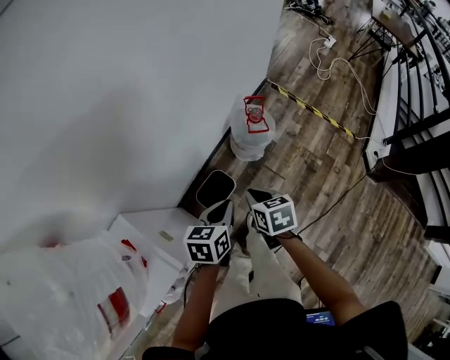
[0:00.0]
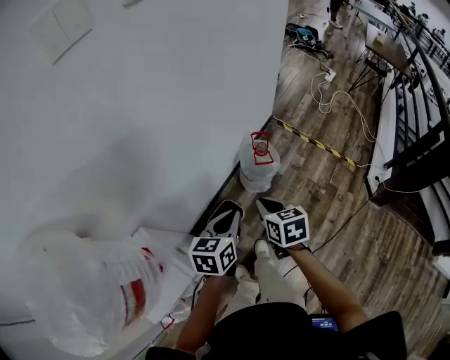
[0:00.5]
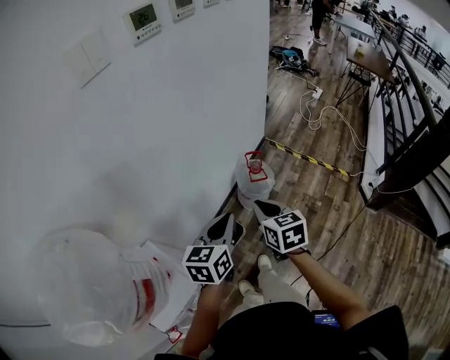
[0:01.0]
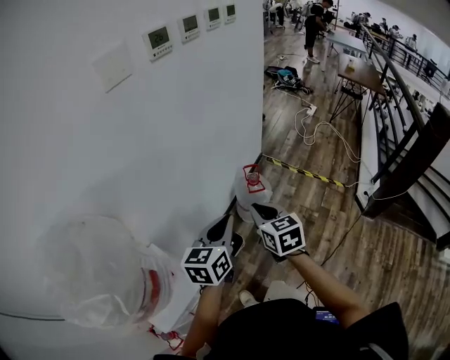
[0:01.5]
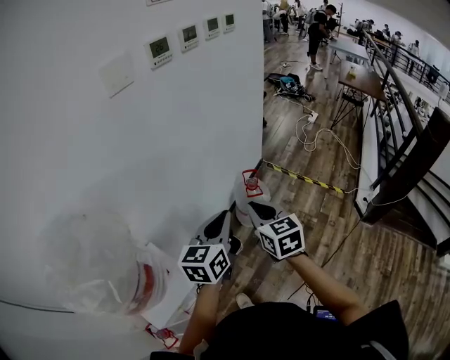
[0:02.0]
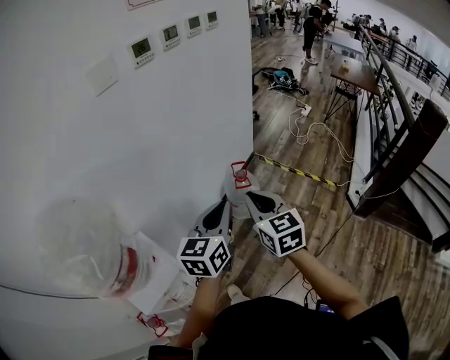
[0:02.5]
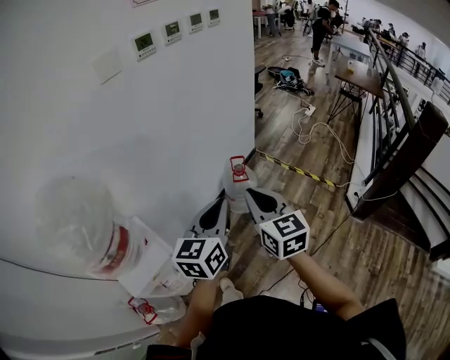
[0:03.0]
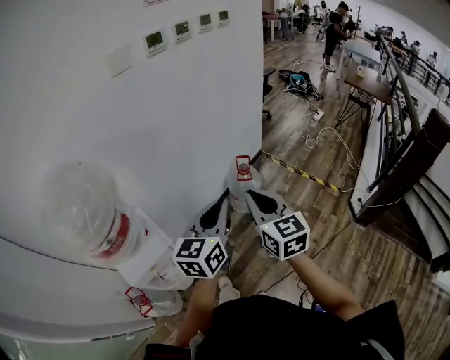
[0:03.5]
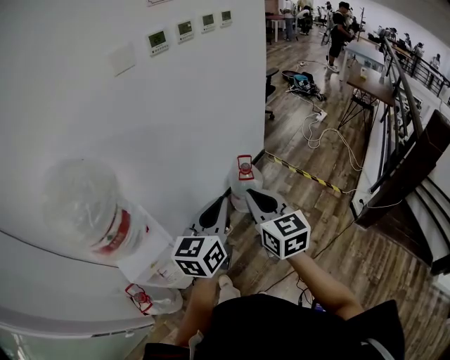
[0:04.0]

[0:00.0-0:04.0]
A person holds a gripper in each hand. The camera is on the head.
0:00.0 to 0:02.0: The two grippers go about 30 cm upward. The right gripper rotates about 40 degrees. Meanwhile the left gripper turns by about 30 degrees.
0:02.0 to 0:04.0: Both grippers travel together backward, to the right and upward, roughly 15 cm.

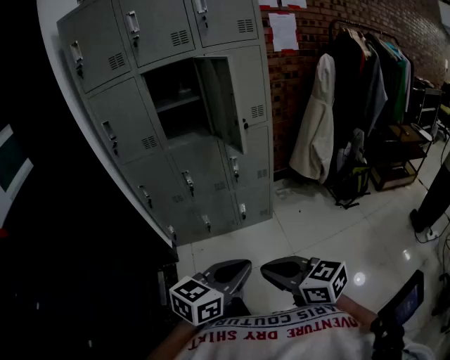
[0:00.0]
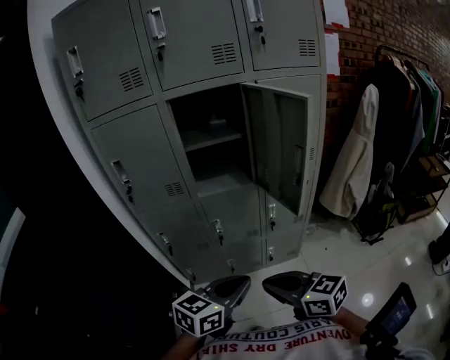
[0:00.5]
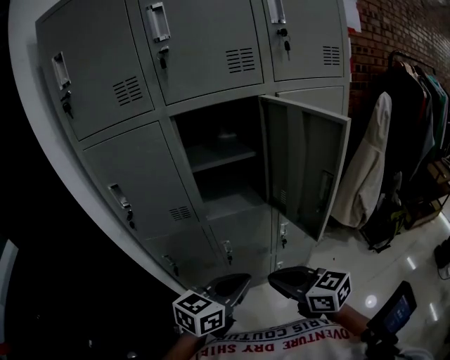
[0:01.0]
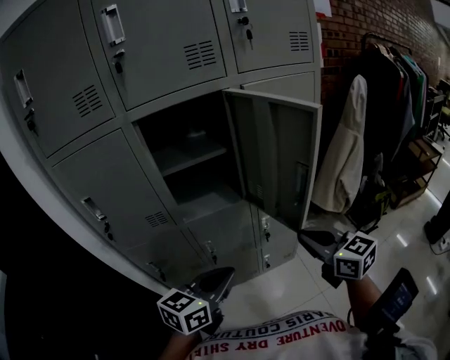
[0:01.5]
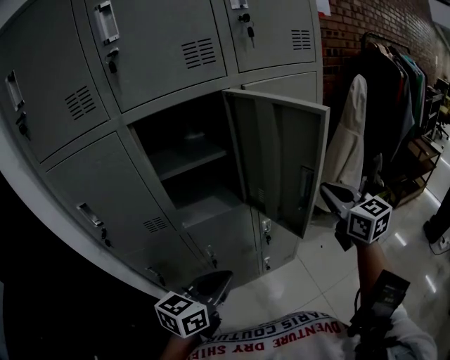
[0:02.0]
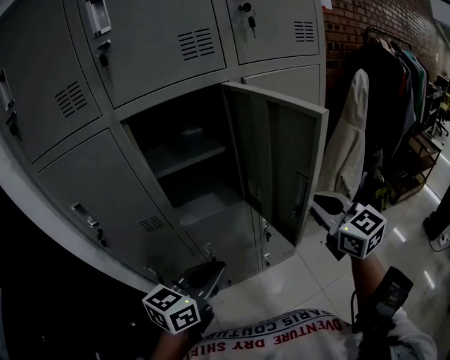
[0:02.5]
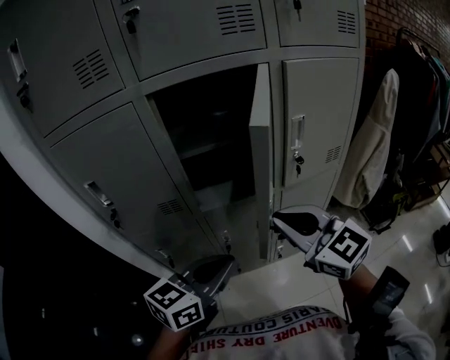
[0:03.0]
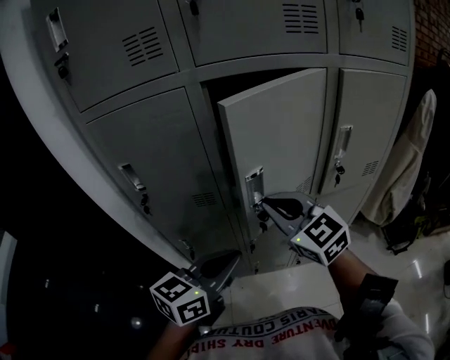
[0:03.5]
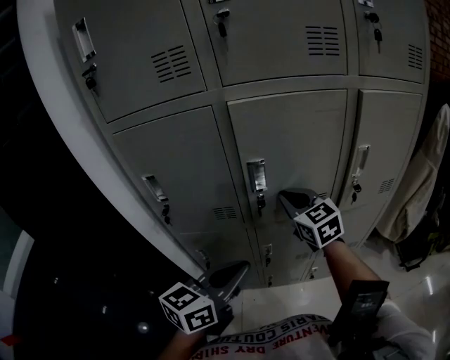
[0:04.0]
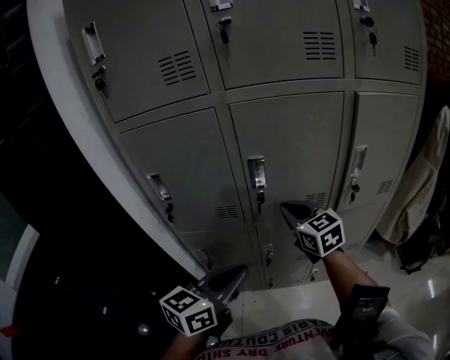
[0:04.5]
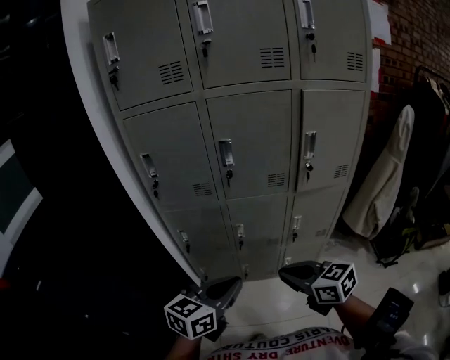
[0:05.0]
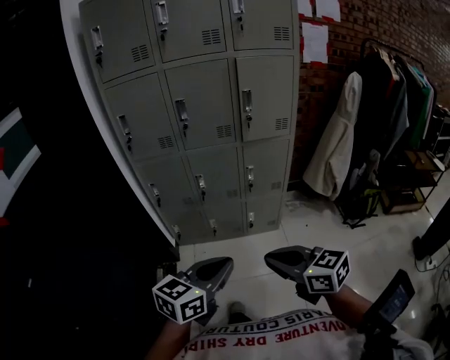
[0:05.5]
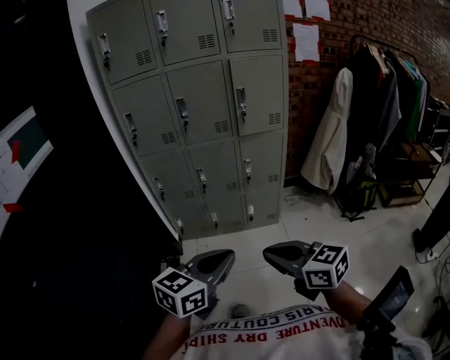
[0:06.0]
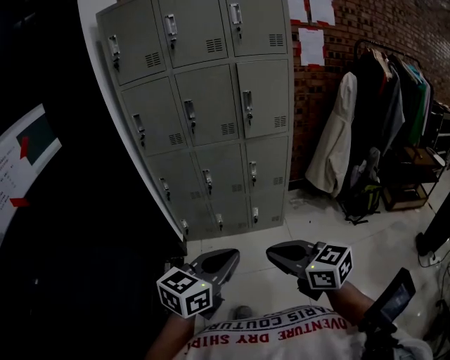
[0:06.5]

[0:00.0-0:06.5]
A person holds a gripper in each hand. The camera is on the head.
0:00.0 to 0:02.0: The two grippers travel together, forward, approximately 50 cm. The right gripper changes its angle by approximately 40 degrees.
0:02.0 to 0:04.5: The left gripper is displaced to the left by roughly 10 cm. Meanwhile the right gripper moves to the left, about 35 cm, and changes its angle by roughly 30 degrees.
0:04.5 to 0:06.5: The pair of grippers is taken backward, approximately 60 cm.

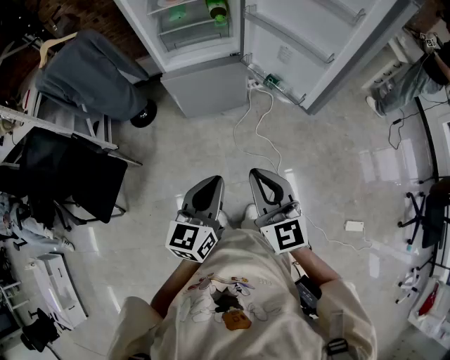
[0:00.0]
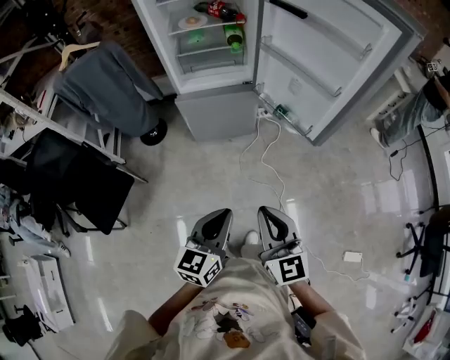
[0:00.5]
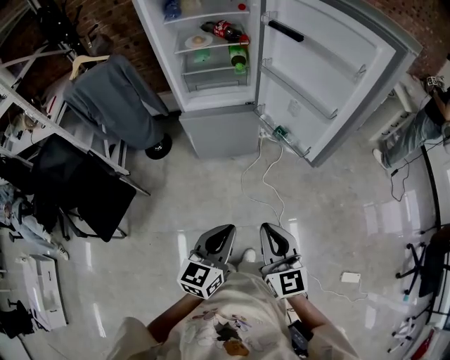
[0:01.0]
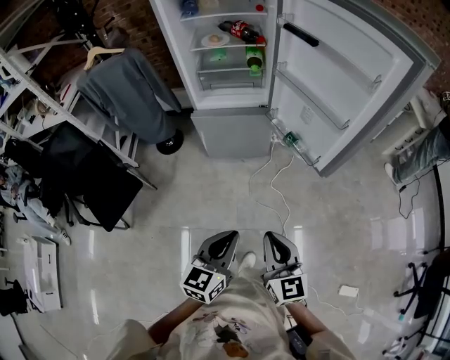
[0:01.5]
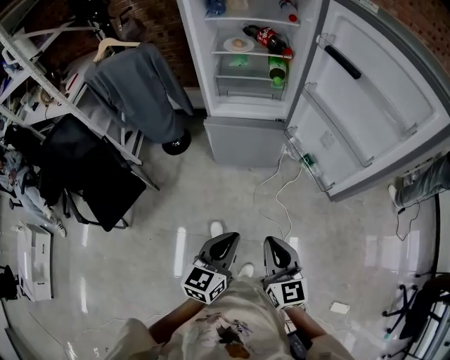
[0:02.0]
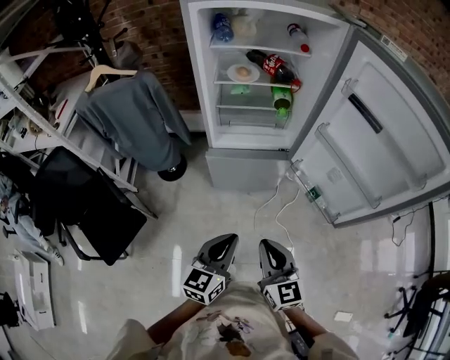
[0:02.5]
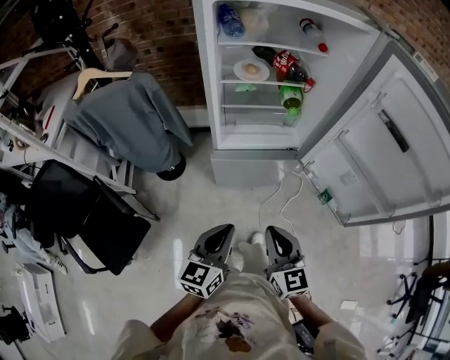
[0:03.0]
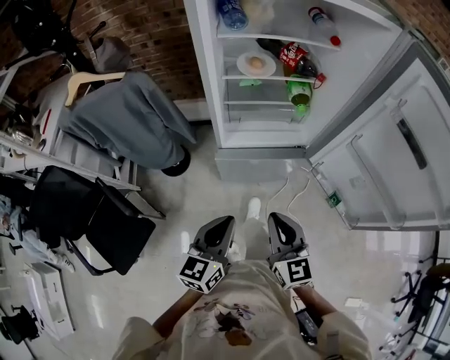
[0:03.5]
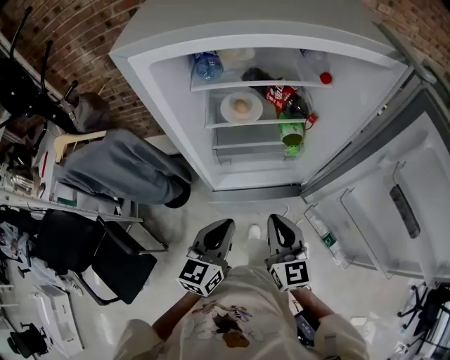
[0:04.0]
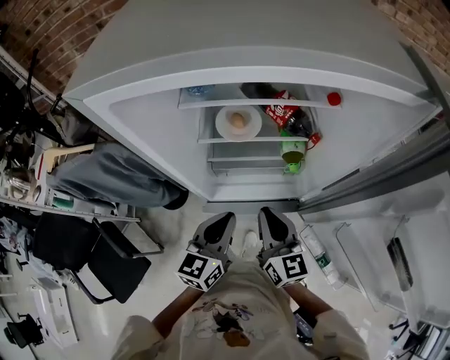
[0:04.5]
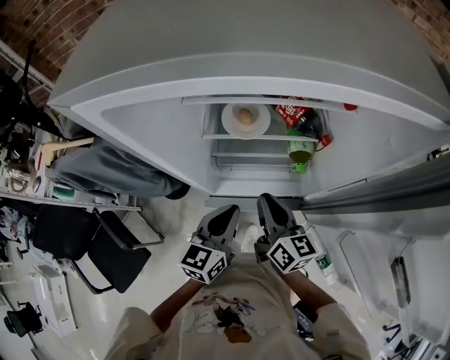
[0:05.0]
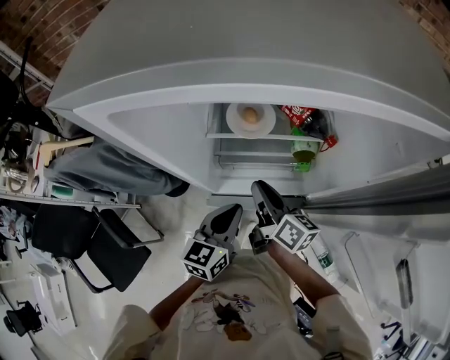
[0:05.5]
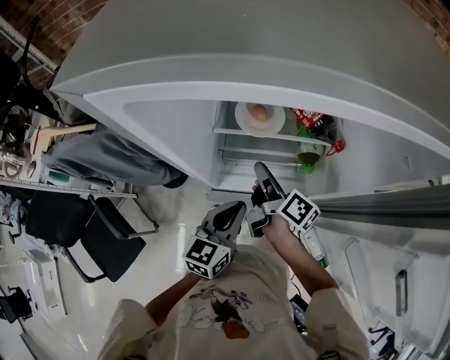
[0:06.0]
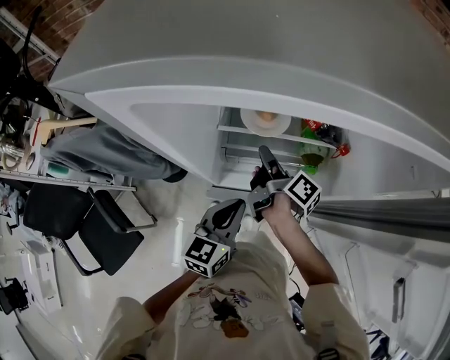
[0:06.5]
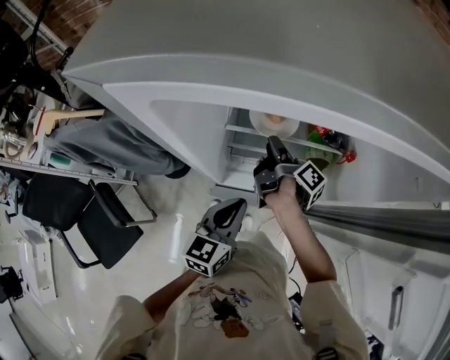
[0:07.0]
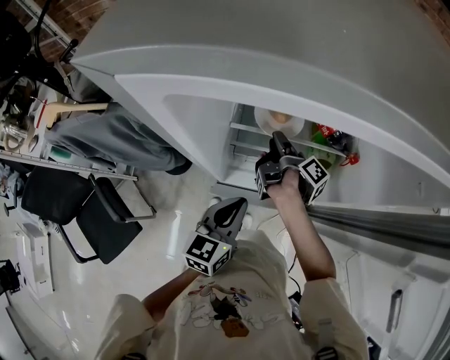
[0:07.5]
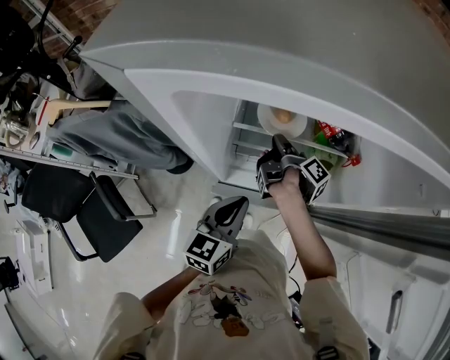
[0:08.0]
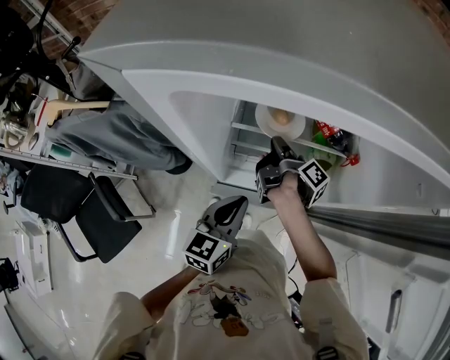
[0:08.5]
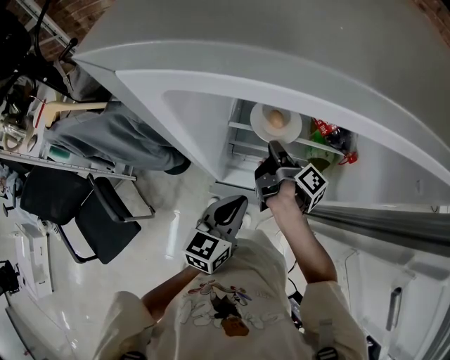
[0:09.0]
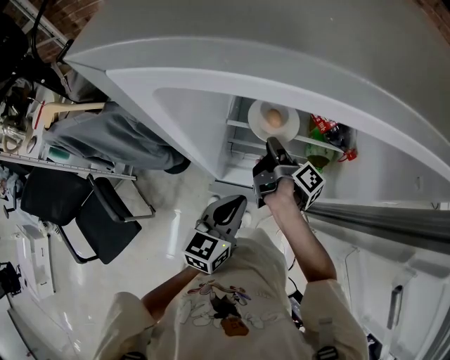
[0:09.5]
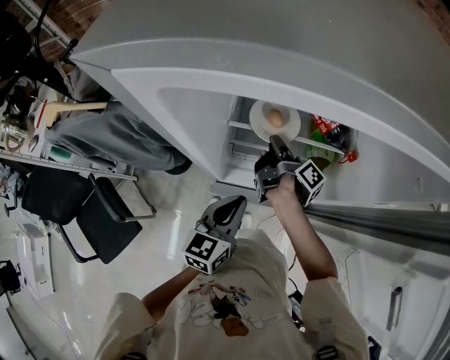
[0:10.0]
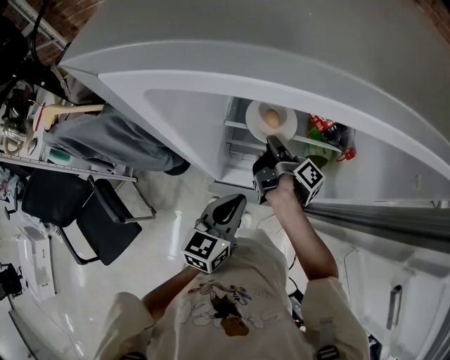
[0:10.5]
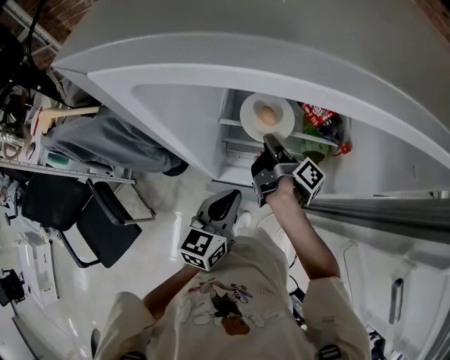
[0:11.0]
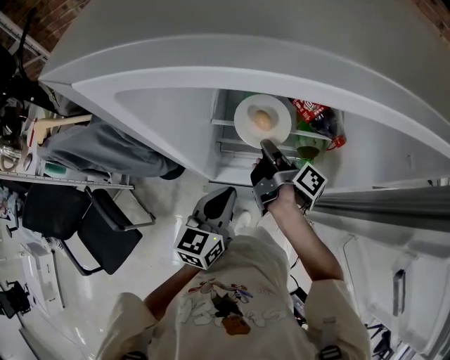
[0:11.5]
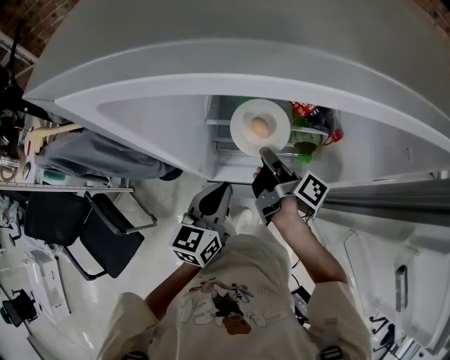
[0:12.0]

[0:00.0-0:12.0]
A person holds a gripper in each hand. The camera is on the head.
0:00.0 to 0:02.0: The left gripper ends up roughly 5 cm from where it was; the right gripper shifts about 5 cm downward.
0:02.0 to 0:04.0: The two grippers travel together, forward, roughly 50 cm.
0:04.0 to 0:06.0: The right gripper goes some 25 cm forward, and rotates around the line of its fingers by approximately 70 degrees, clockwise from behind; the left gripper shifts about 15 cm forward.
0:06.0 to 0:08.0: The right gripper heads forward, covering roughly 10 cm, and rotates some 30 degrees.
0:08.0 to 0:10.0: The grippers move only a little.
0:10.0 to 0:12.0: The right gripper is displaced backward by approximately 5 cm.

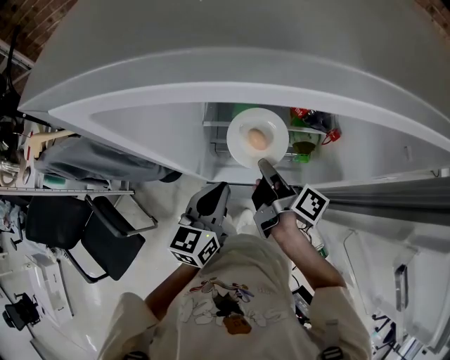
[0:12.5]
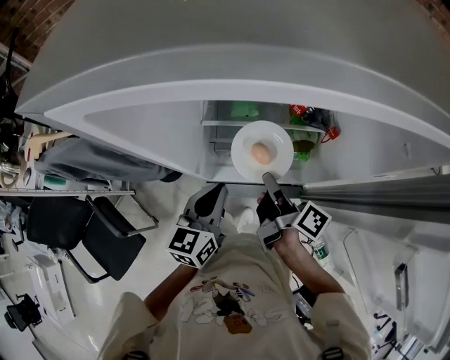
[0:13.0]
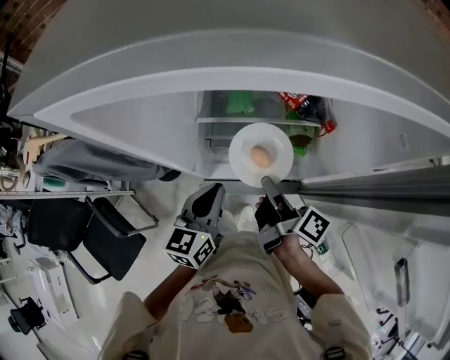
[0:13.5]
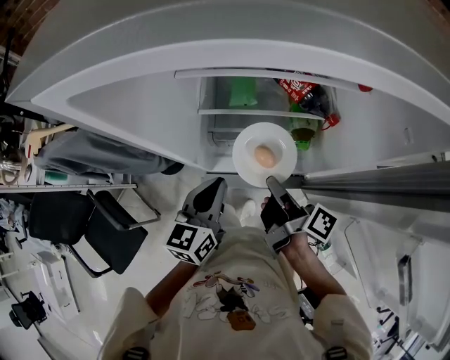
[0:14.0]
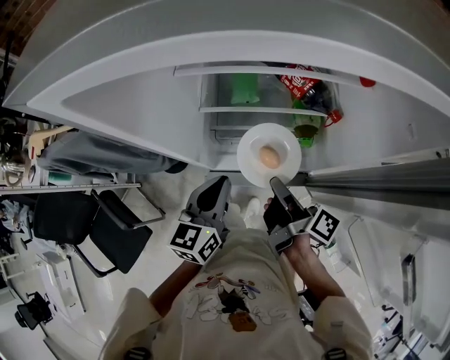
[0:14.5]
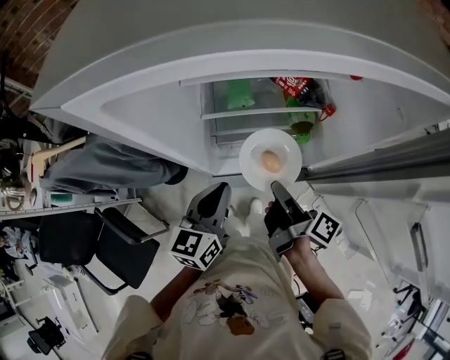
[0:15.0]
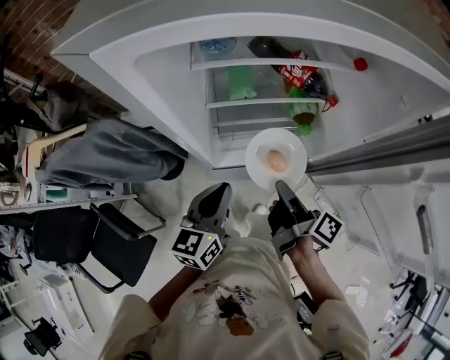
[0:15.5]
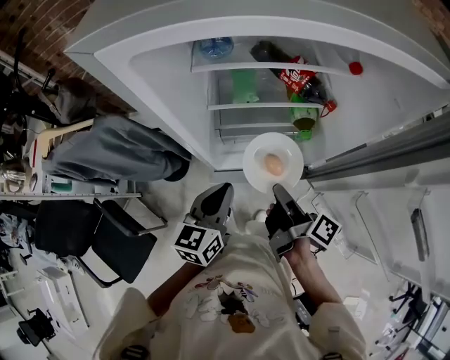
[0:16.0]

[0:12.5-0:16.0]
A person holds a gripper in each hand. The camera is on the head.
0:12.5 to 0:14.5: The right gripper goes approximately 10 cm backward.
0:14.5 to 0:16.0: The right gripper heads backward, covering about 5 cm. Meanwhile the left gripper ends up roughly 5 cm from where it was.
